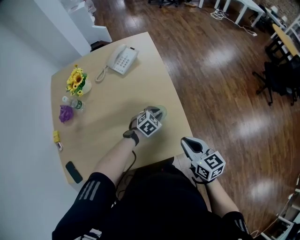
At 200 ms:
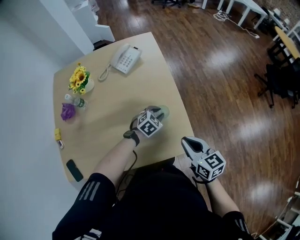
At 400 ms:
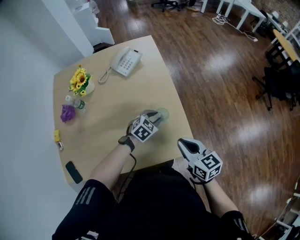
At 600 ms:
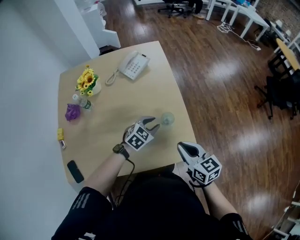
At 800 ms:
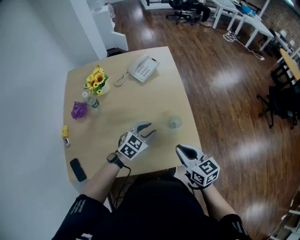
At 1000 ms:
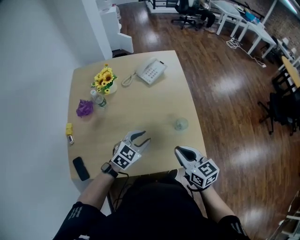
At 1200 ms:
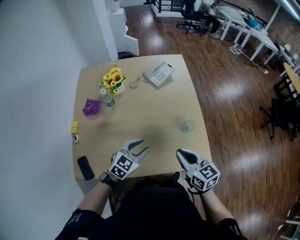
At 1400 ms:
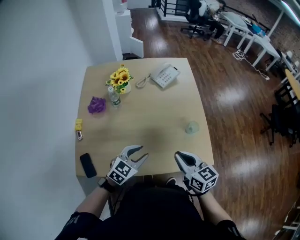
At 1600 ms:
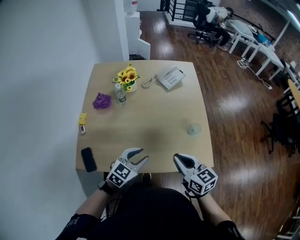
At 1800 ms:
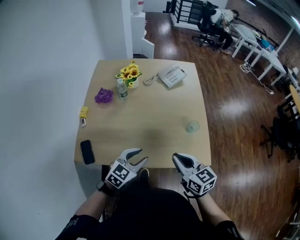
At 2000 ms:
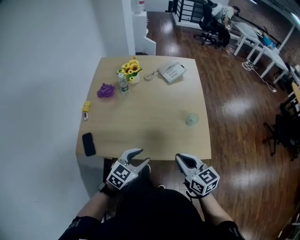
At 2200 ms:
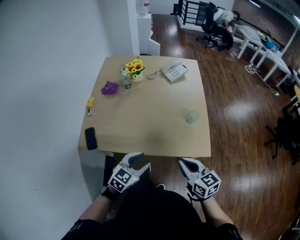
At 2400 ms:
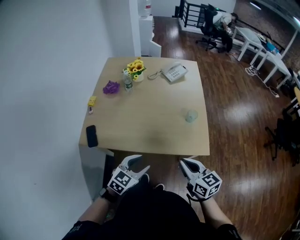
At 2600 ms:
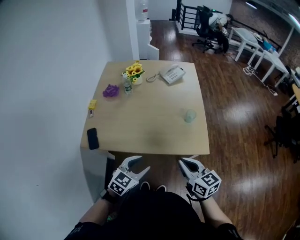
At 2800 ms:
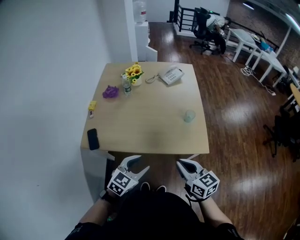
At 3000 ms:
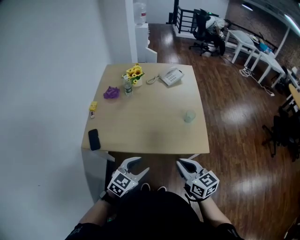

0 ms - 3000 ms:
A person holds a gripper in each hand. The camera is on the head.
0 ms - 1600 ms: The right gripper goes approximately 25 cm to the left. The left gripper travels to the left, backward and upward by approximately 40 cm, and swivels about 30 degrees.
1600 ms - 3000 ms: The grippers both shift backward by approximately 20 cm.

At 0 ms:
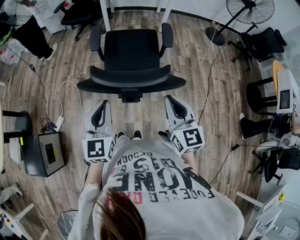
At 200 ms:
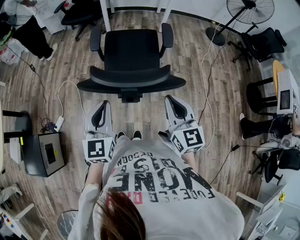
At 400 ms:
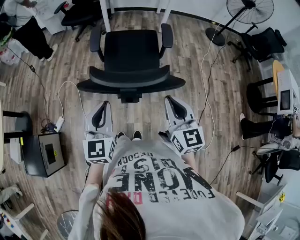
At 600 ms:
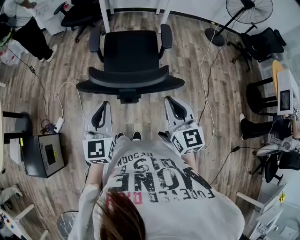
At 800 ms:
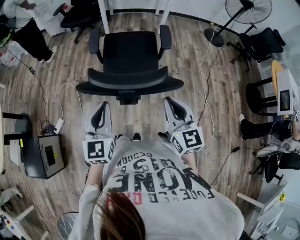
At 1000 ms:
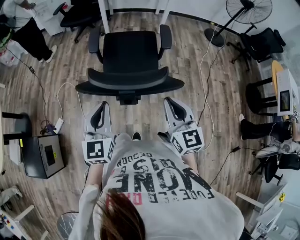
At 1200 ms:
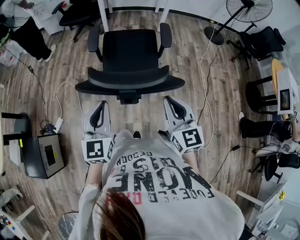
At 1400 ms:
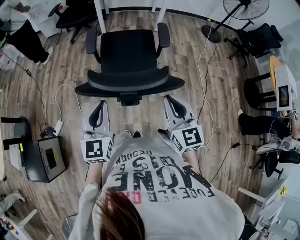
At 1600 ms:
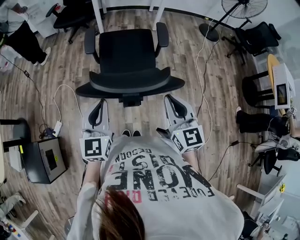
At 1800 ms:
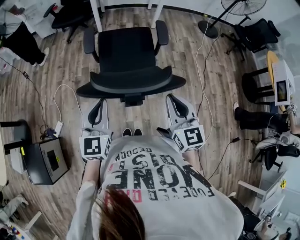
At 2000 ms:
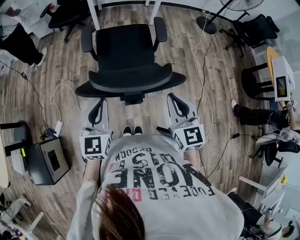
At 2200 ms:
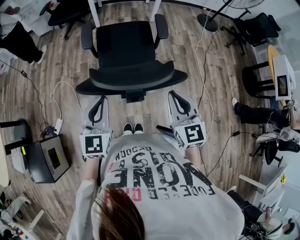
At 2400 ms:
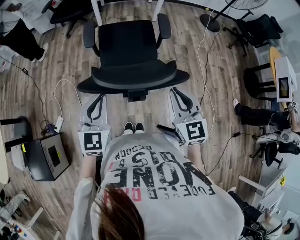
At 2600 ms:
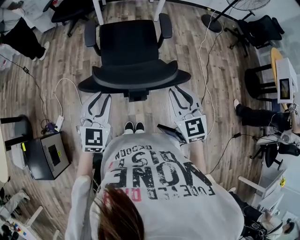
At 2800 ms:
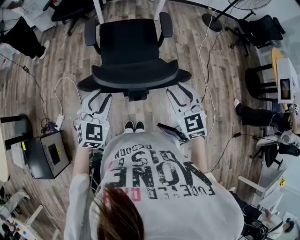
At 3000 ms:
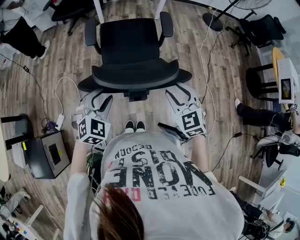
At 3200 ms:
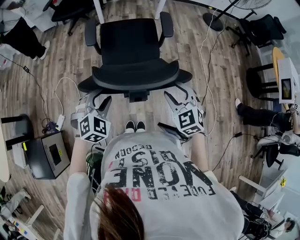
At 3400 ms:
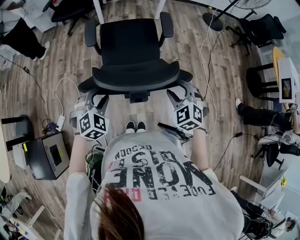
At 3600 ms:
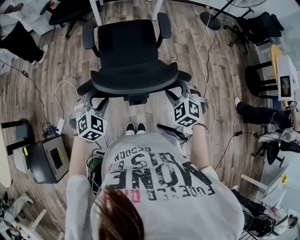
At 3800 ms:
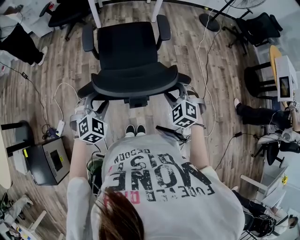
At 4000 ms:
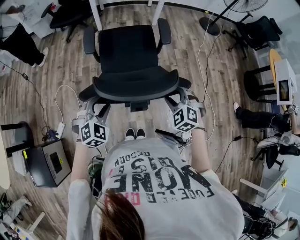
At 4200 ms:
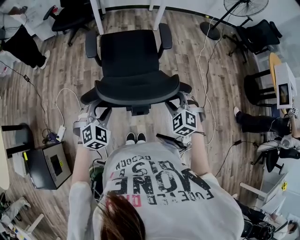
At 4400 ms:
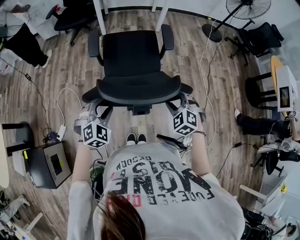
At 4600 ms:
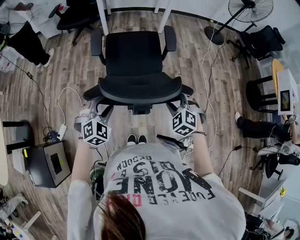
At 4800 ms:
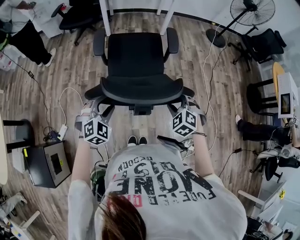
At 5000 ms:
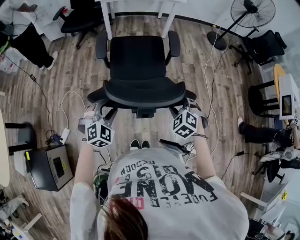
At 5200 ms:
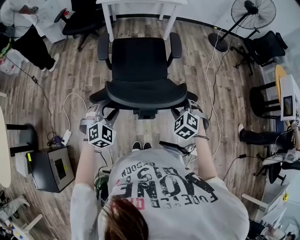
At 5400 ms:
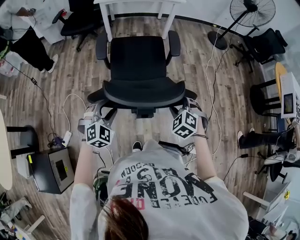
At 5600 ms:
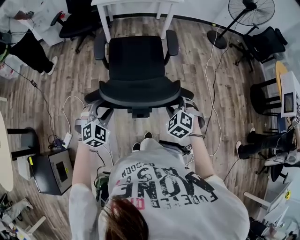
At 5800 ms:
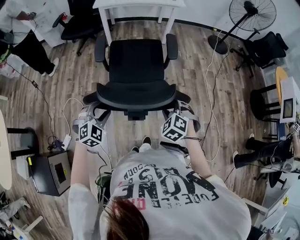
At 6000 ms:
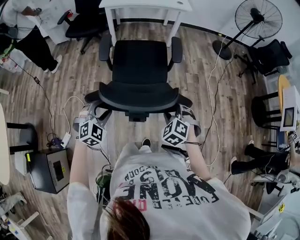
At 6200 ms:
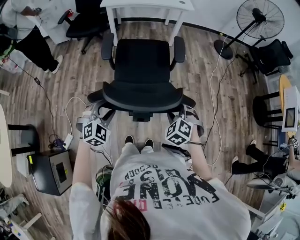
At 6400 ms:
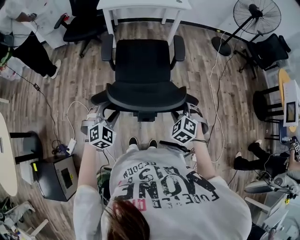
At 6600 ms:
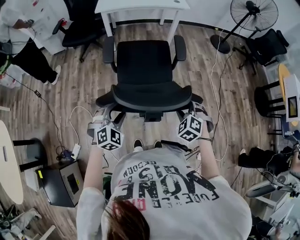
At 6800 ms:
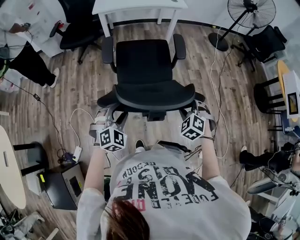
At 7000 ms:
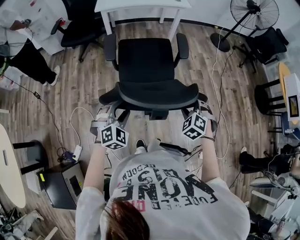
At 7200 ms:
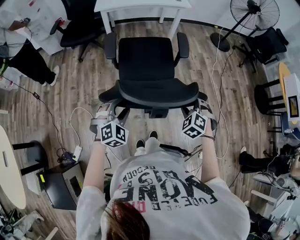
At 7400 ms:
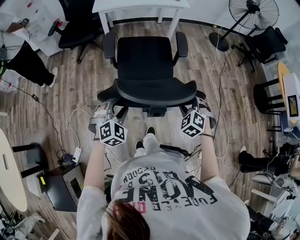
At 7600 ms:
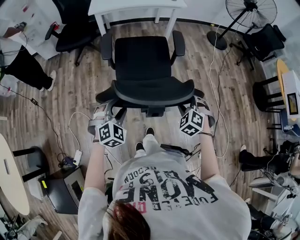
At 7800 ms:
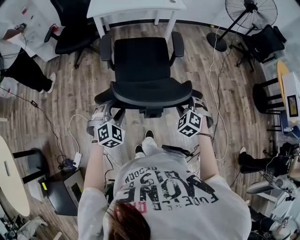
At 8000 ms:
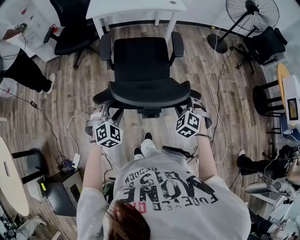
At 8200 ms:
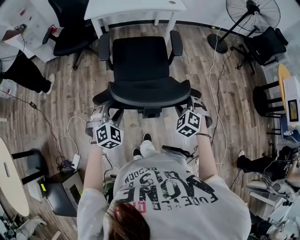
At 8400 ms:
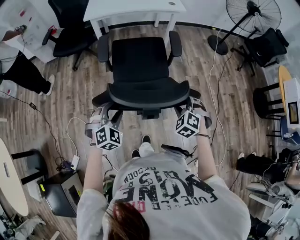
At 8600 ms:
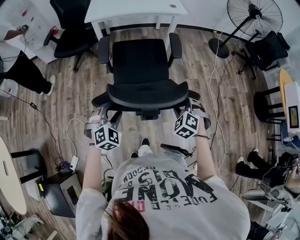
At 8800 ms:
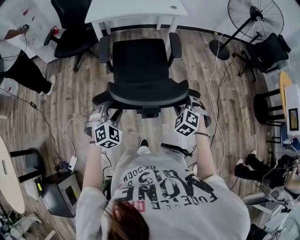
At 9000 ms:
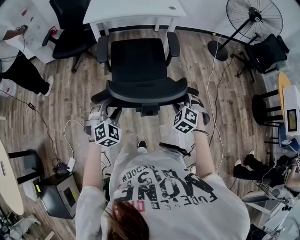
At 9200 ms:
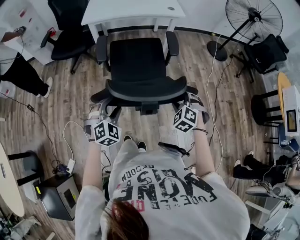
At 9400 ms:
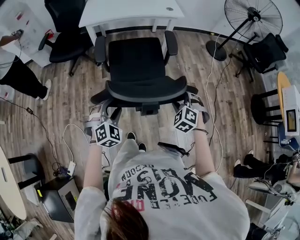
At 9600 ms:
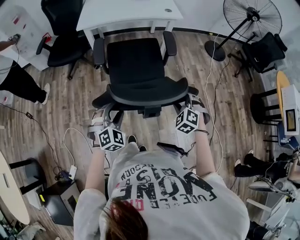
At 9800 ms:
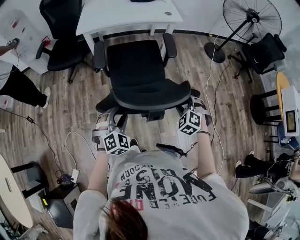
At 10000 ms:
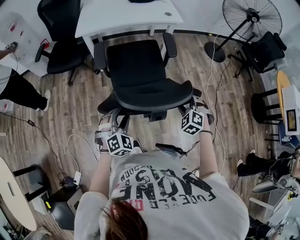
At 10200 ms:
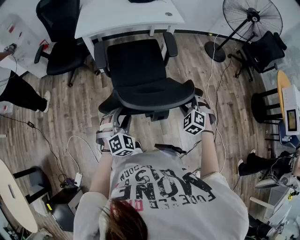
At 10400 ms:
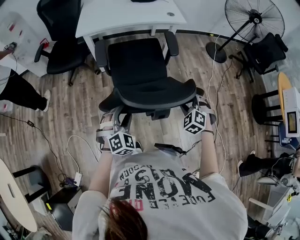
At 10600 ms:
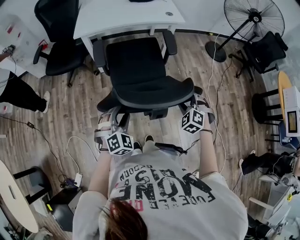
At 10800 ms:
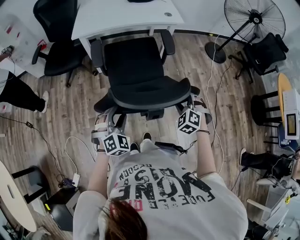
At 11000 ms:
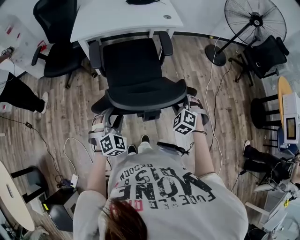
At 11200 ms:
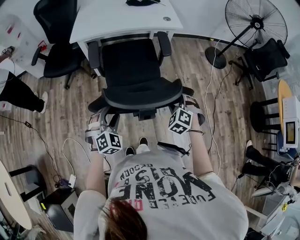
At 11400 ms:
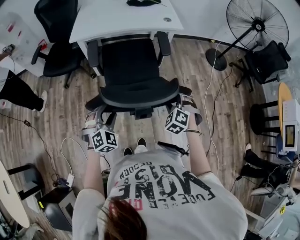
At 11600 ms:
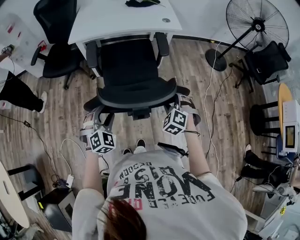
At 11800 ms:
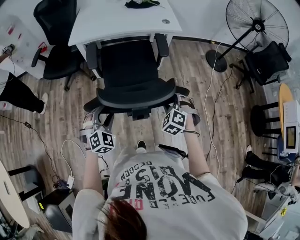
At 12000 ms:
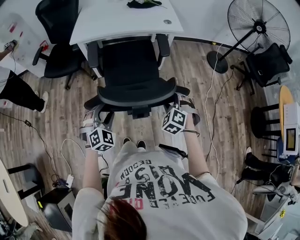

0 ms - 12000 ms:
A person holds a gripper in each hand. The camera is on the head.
0 ms - 1600 ms: There are only small adjustments of the grippers.
1600 ms - 3000 ms: Both grippers travel together downward, some 10 cm. The left gripper swivels some 50 degrees, and opens up, while the right gripper swivels approximately 30 degrees, and opens.
3000 ms - 4400 ms: The left gripper ends up roughly 5 cm from where it was. Meanwhile the right gripper travels downward by about 10 cm, and changes its angle by about 30 degrees.
4400 ms - 6000 ms: The grippers both shift forward by approximately 10 cm.
6000 ms - 7600 ms: Both grippers travel together forward, about 10 cm.
7600 ms - 9000 ms: The grippers both shift forward by some 10 cm.
9000 ms - 10400 ms: Both grippers move forward, roughly 10 cm.
10400 ms - 12000 ms: The two grippers go approximately 10 cm forward.

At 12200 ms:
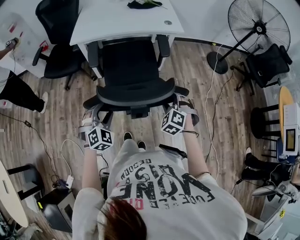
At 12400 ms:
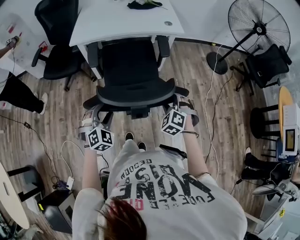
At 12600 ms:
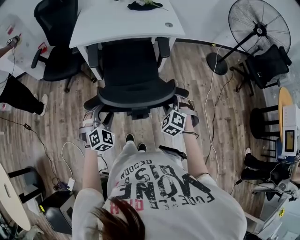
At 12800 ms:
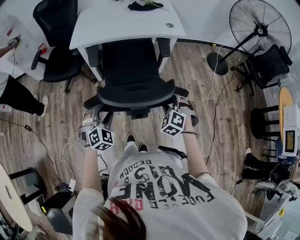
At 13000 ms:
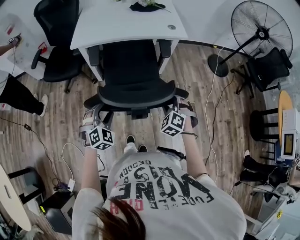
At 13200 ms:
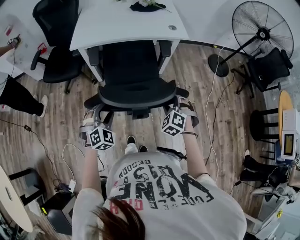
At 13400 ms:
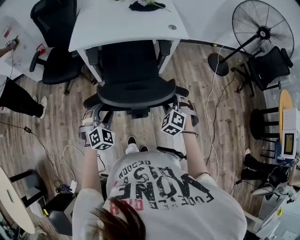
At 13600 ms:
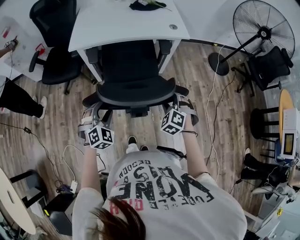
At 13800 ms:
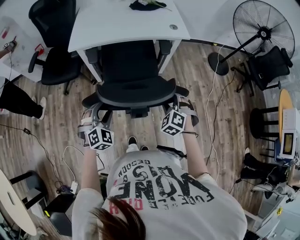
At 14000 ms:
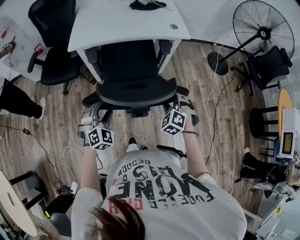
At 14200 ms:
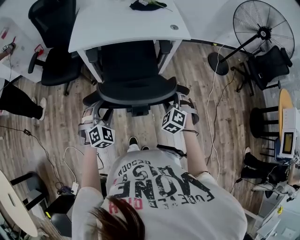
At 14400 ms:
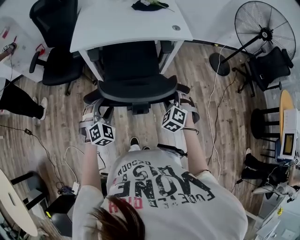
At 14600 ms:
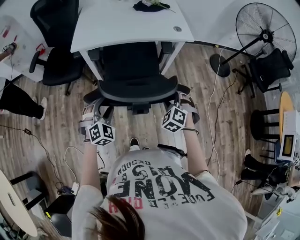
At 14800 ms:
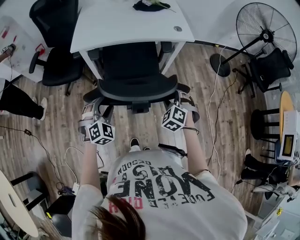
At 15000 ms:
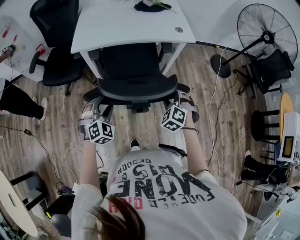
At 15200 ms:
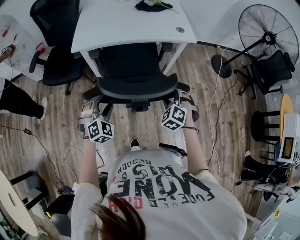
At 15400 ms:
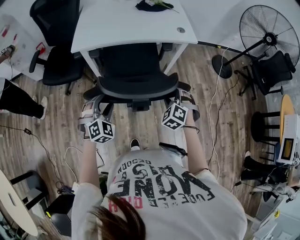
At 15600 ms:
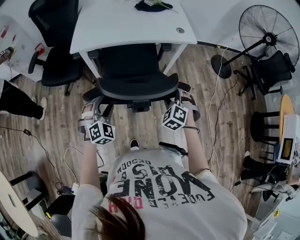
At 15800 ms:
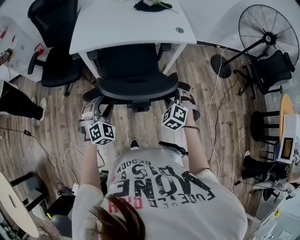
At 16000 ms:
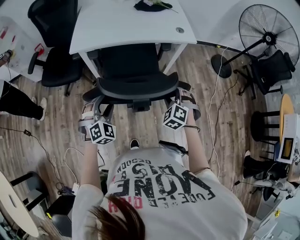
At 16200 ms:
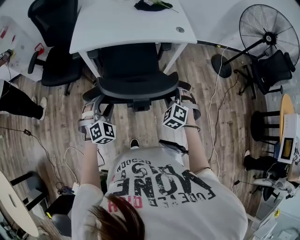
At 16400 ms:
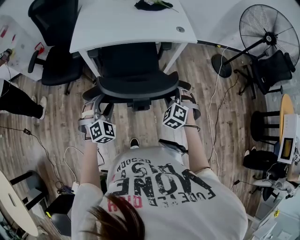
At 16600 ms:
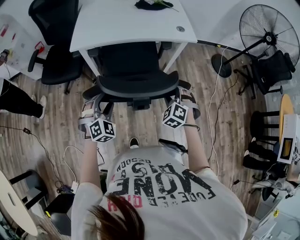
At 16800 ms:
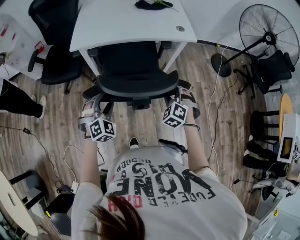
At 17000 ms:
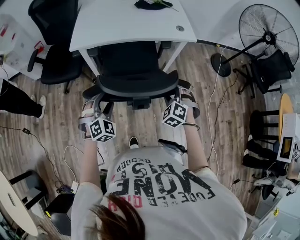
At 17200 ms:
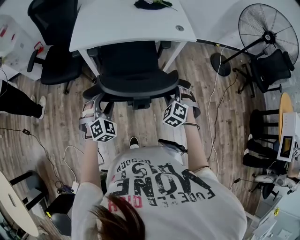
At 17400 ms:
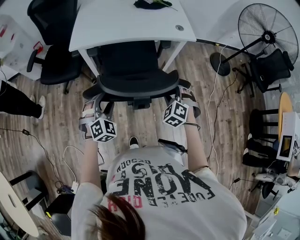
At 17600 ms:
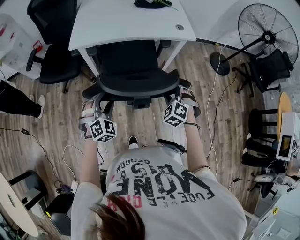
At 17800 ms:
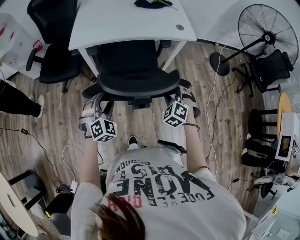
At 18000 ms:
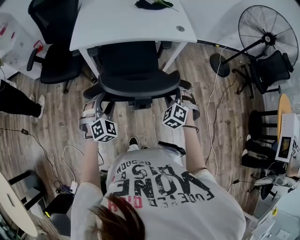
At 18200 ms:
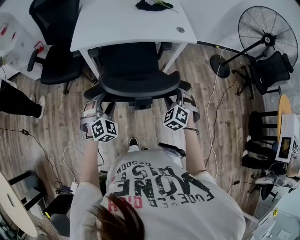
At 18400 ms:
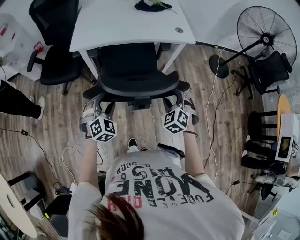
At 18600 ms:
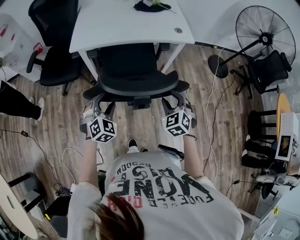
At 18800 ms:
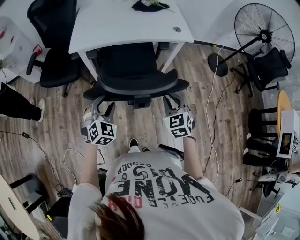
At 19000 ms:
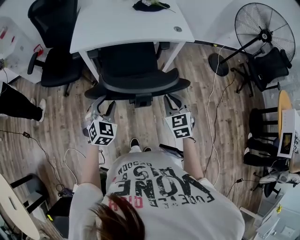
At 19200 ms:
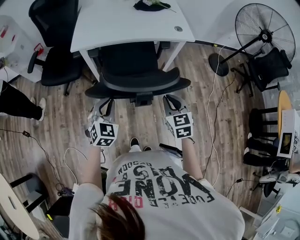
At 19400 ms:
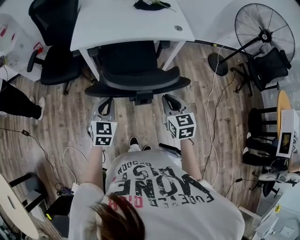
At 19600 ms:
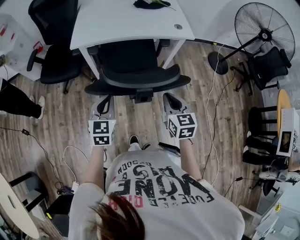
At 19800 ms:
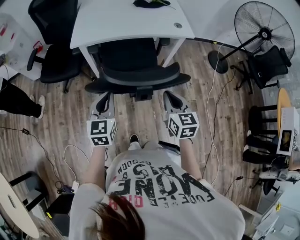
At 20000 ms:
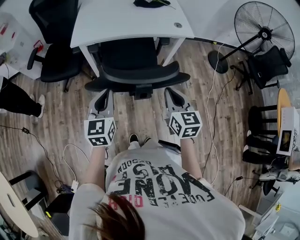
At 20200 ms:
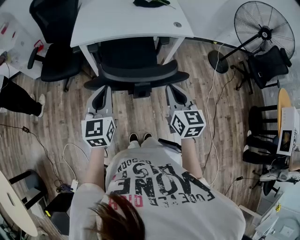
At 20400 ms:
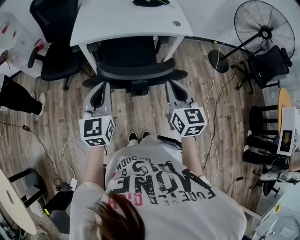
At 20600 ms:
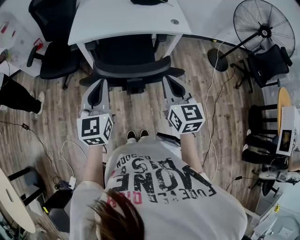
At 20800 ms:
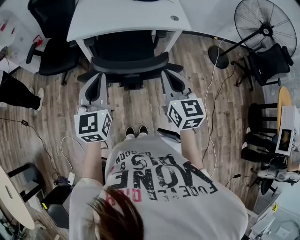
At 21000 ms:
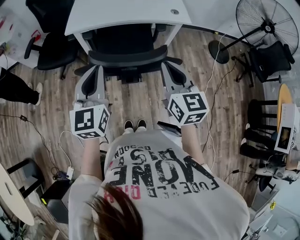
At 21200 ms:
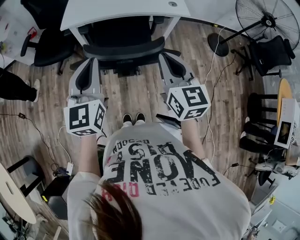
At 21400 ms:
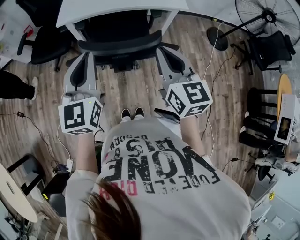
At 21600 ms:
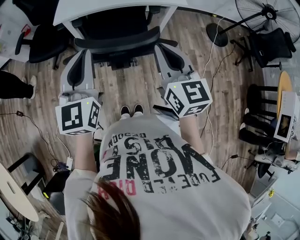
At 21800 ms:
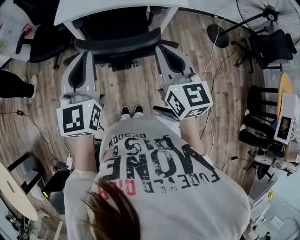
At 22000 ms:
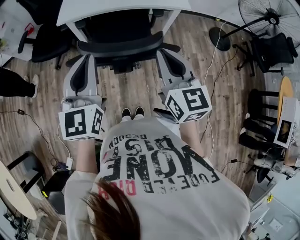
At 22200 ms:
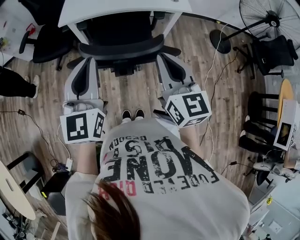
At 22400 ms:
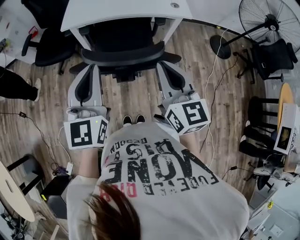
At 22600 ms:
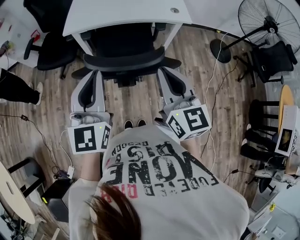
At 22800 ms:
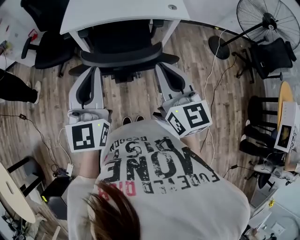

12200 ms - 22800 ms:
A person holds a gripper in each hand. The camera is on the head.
12200 ms - 13800 ms: Both grippers move forward and to the left, about 10 cm.
13800 ms - 15200 ms: The grippers both shift forward by some 5 cm.
15200 ms - 18200 ms: The grippers make only small movements.
18200 ms - 19800 ms: The left gripper goes some 10 cm upward, twists about 50 degrees counterclockwise, seen from behind, and closes. The right gripper is displaced upward and backward by about 10 cm, twists approximately 60 degrees clockwise, seen from behind, and closes its fingers.
19800 ms - 21200 ms: The grippers both shift upward by approximately 15 cm.
21200 ms - 22800 ms: The left gripper ends up approximately 5 cm from where it was.
